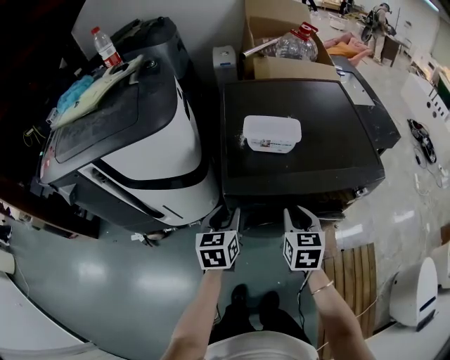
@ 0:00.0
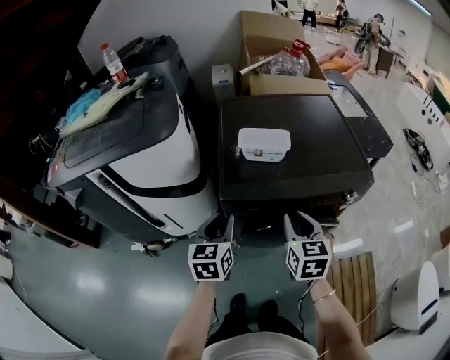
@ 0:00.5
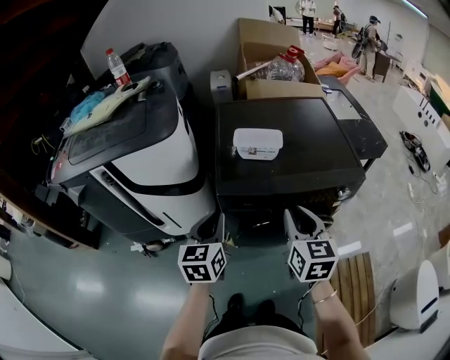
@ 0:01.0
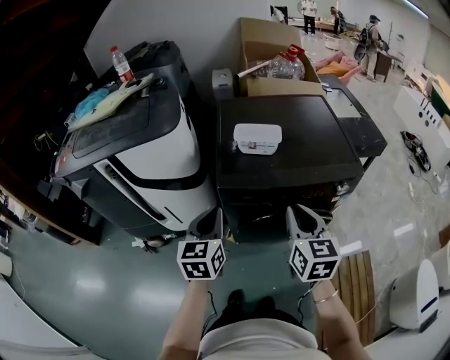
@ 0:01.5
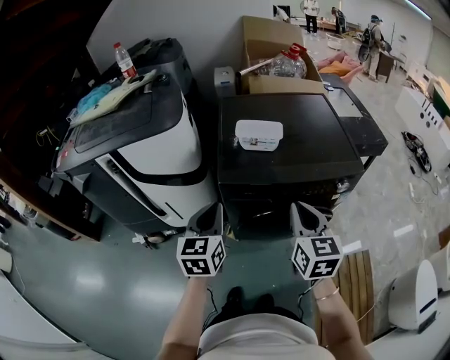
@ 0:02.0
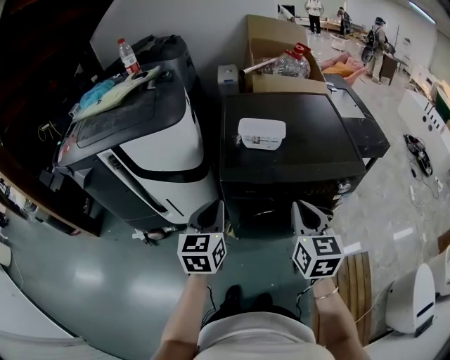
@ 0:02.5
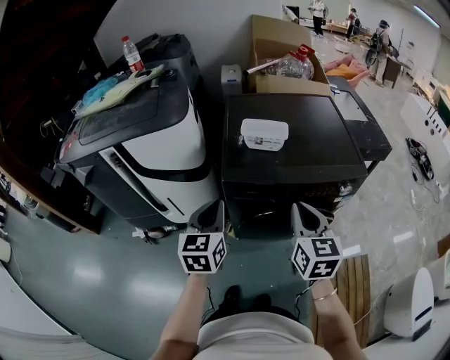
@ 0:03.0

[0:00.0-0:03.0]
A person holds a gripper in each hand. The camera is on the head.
0:00.0 to 0:01.5: The two grippers go approximately 15 cm upward and backward. The left gripper closes up.
0:01.5 to 0:03.0: Neither gripper changes place.

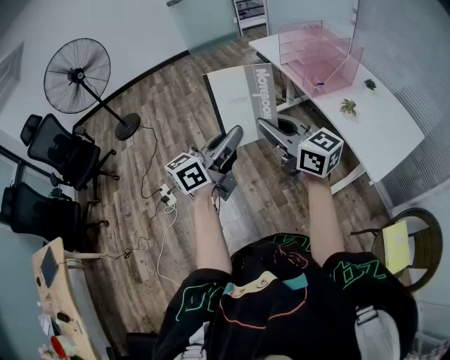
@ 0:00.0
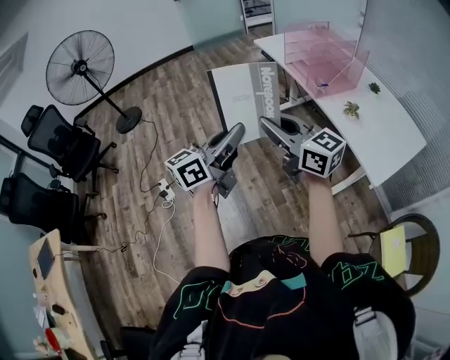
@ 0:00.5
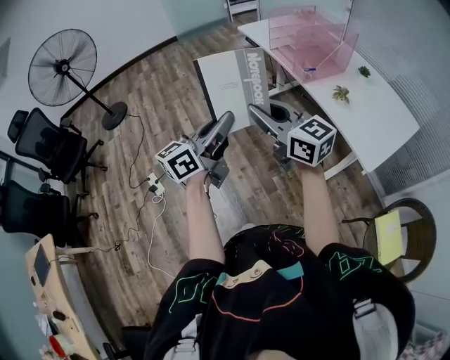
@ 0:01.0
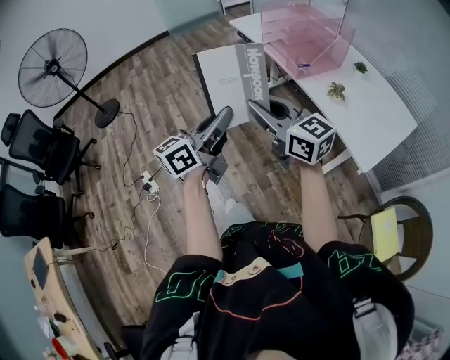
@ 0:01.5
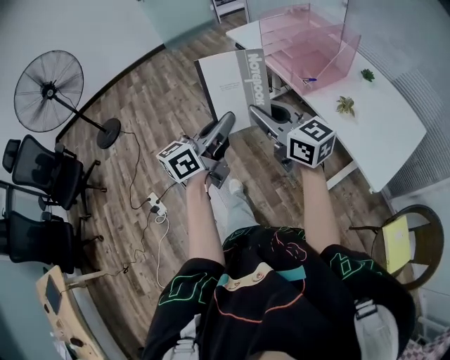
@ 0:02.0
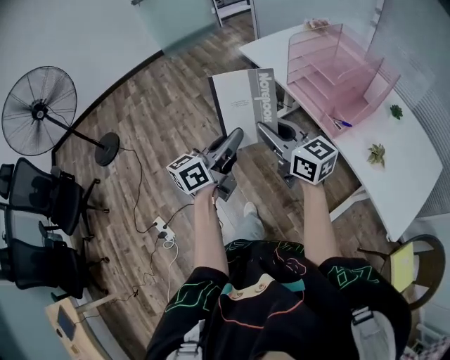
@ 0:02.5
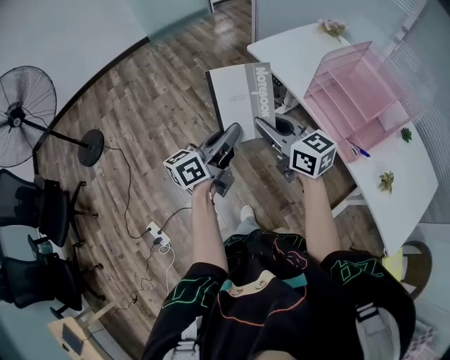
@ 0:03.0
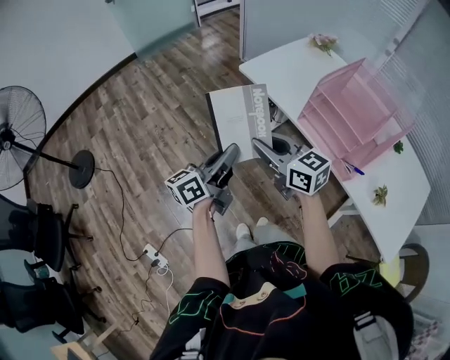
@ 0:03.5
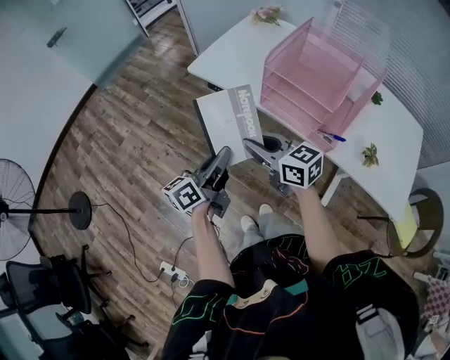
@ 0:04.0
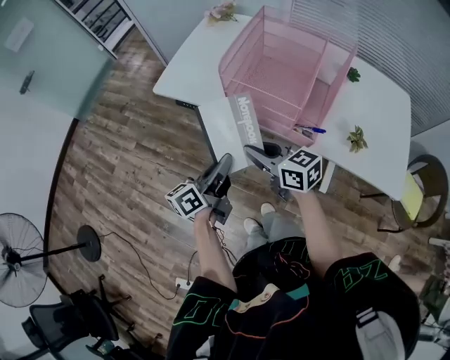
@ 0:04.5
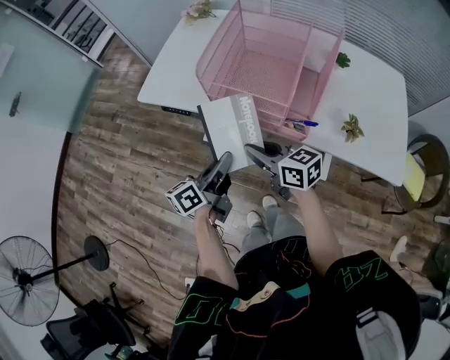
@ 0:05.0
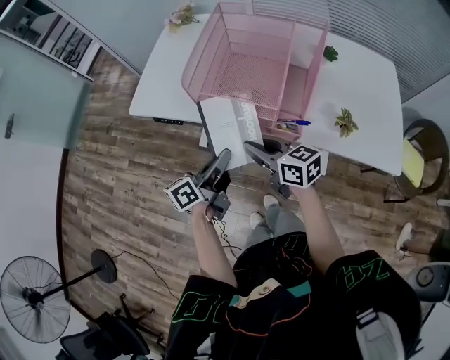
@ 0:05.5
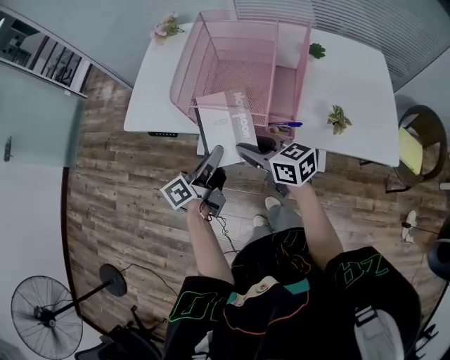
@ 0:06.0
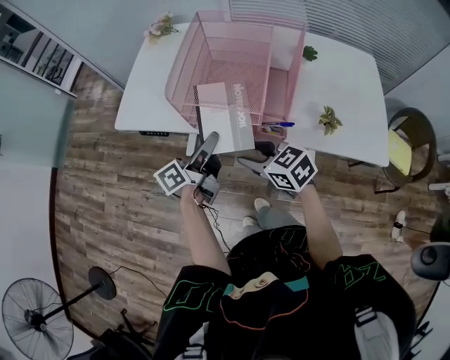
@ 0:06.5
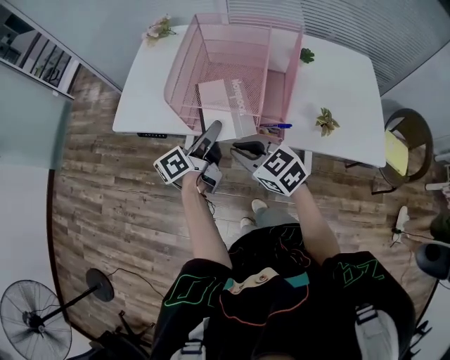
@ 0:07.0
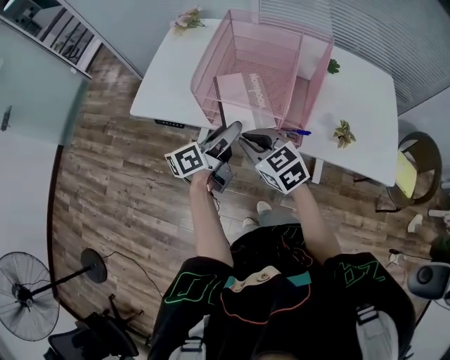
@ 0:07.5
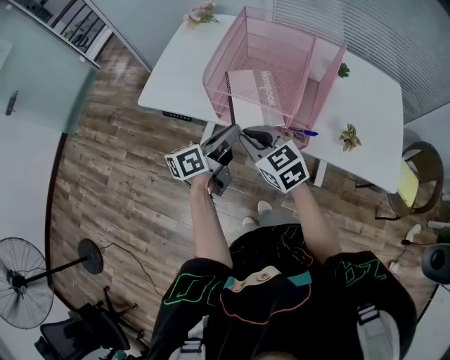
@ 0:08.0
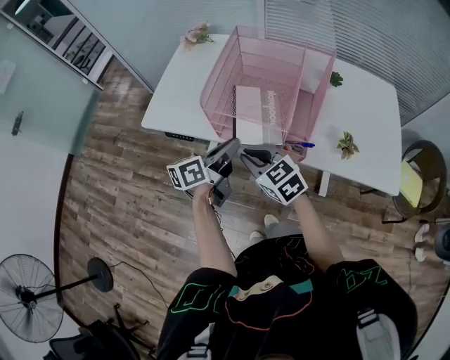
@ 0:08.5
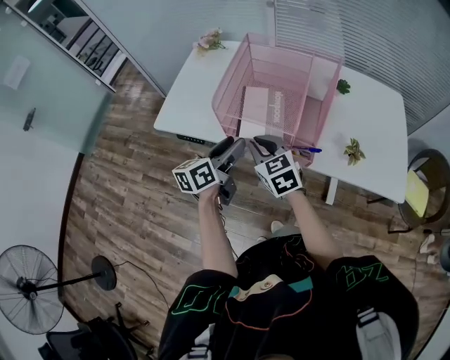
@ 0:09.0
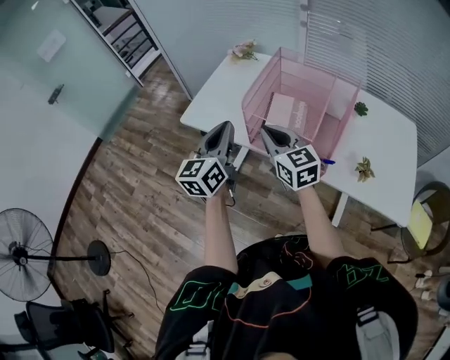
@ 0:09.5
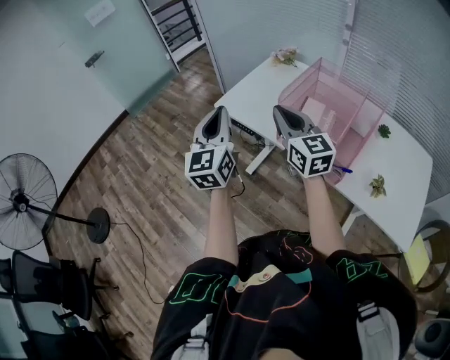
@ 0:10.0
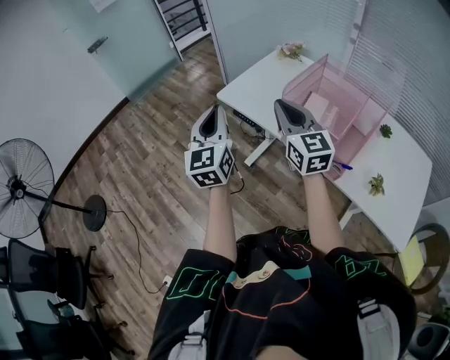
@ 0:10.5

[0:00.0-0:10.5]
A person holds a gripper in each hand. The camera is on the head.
0:00.0 to 0:02.0: The two grippers go about 15 cm forward.
0:02.0 to 0:04.0: The two grippers go roughly 40 cm forward. The right gripper swivels about 30 degrees, while the left gripper swivels about 30 degrees.
0:04.0 to 0:06.5: The left gripper shifts some 20 cm to the right and forward, and changes its angle by about 30 degrees, while the right gripper moves to the right, roughly 15 cm, turns by approximately 30 degrees, and opens.
0:06.5 to 0:08.5: The right gripper goes some 5 cm to the left, and closes. Meanwhile the left gripper opens and closes again.
0:08.5 to 0:10.5: The right gripper shifts roughly 20 cm upward, and tips its fingers upward by about 30 degrees, while the left gripper changes place by approximately 30 cm, rotates approximately 80 degrees, and opens and closes again.

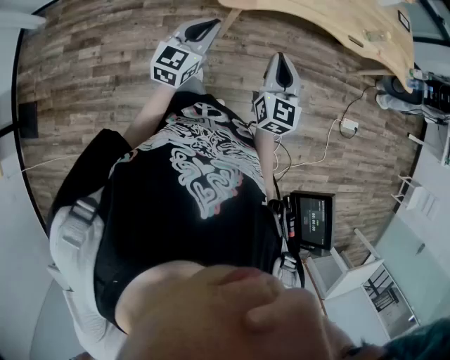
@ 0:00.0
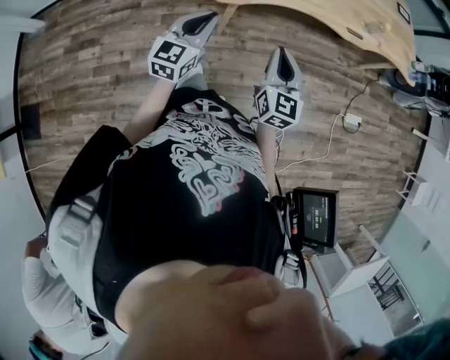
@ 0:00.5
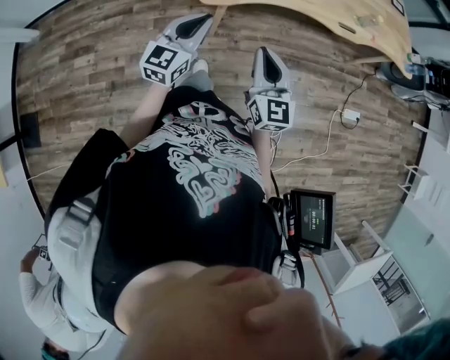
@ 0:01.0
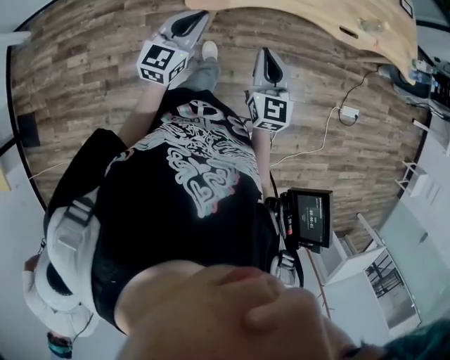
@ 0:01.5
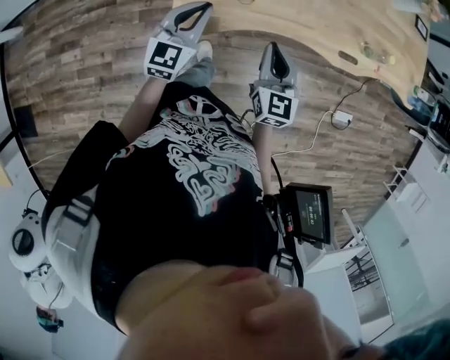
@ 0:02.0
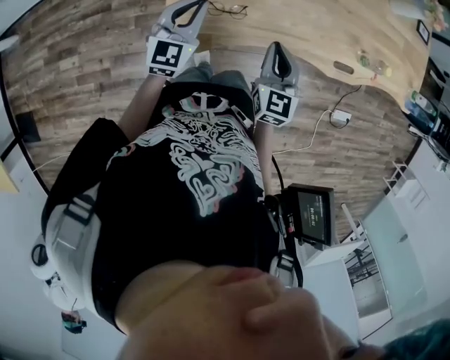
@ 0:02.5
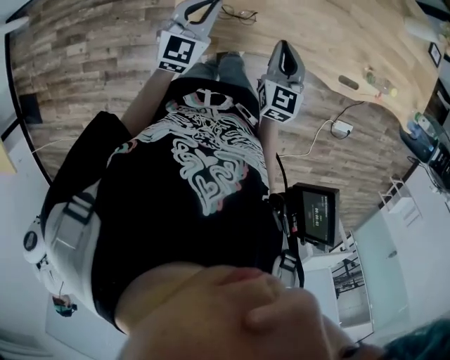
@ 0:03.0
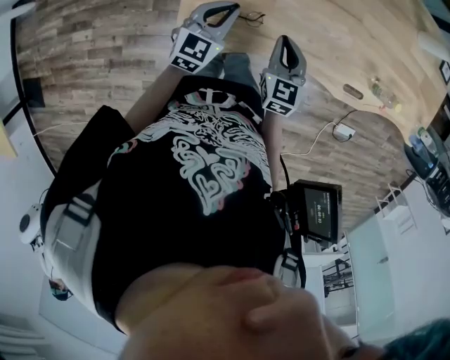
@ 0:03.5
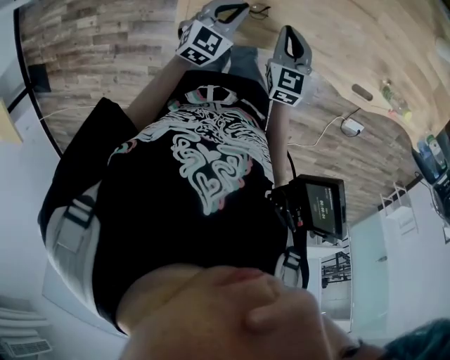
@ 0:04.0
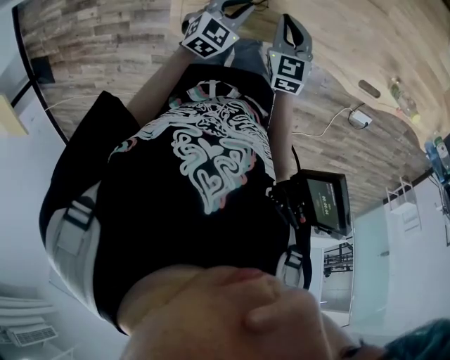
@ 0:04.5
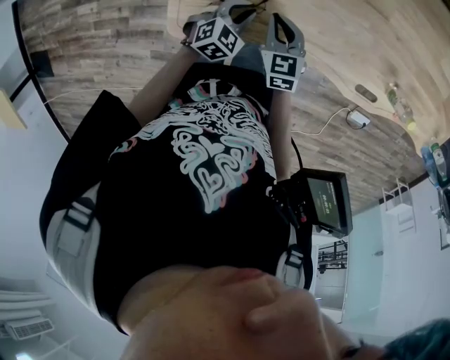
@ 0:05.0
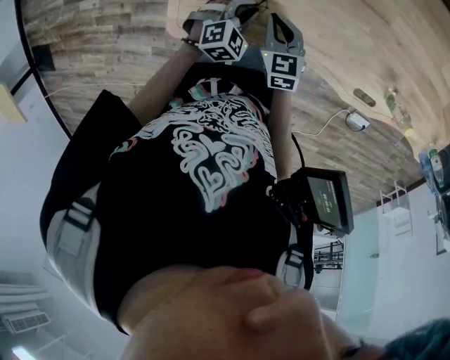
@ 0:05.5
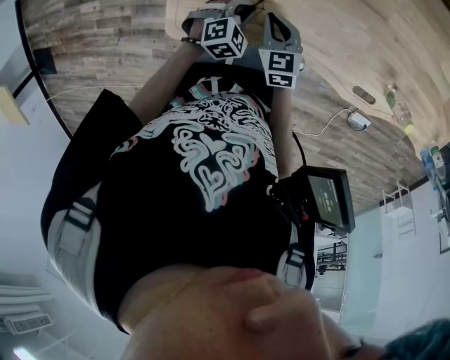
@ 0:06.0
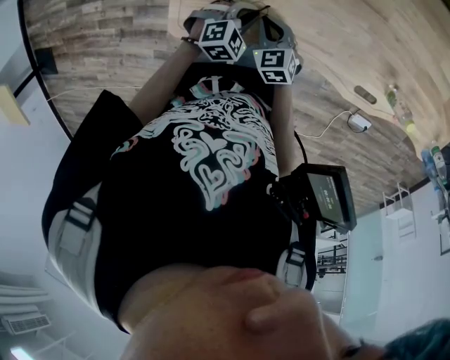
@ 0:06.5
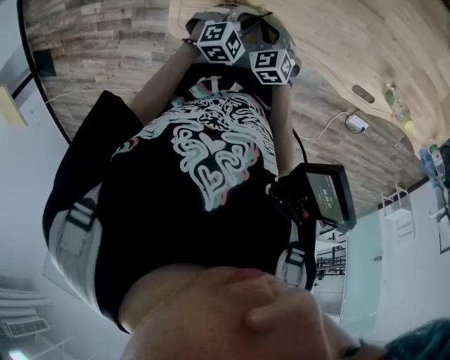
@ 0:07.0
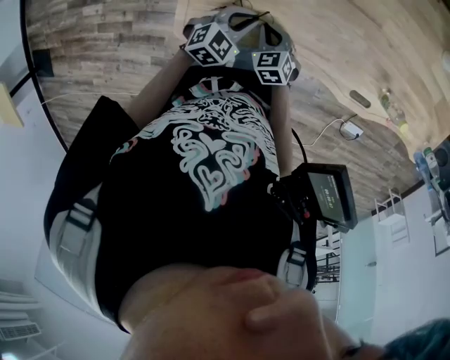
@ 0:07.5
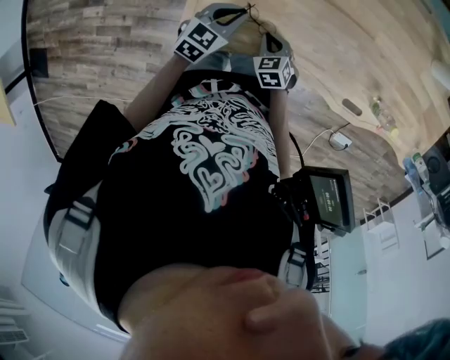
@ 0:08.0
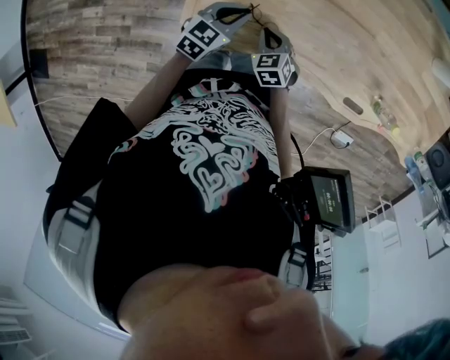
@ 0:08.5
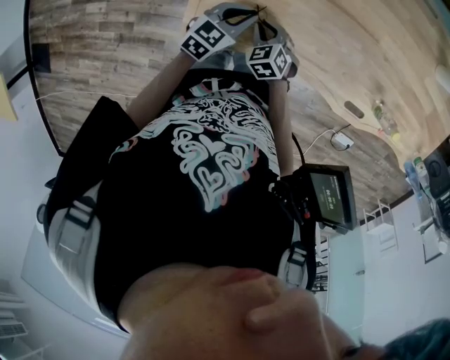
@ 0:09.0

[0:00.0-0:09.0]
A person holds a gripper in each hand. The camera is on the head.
0:00.0 to 0:02.0: Both grippers move forward, about 30 cm.
0:02.0 to 0:04.5: The grippers both shift downward and forward by about 20 cm. The left gripper rotates some 30 degrees. The right gripper changes its angle by about 20 degrees.
0:04.5 to 0:07.0: The left gripper moves some 5 cm, and rotates approximately 20 degrees; the right gripper travels downward by some 5 cm, and changes its angle by about 30 degrees.
0:07.0 to 0:09.0: The right gripper ends up approximately 5 cm from where it was, while the left gripper shifts roughly 10 cm upward, to the left and forward, and swivels some 30 degrees.

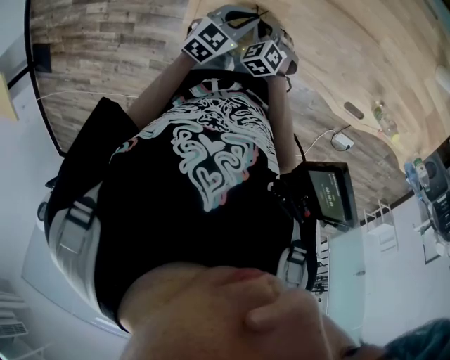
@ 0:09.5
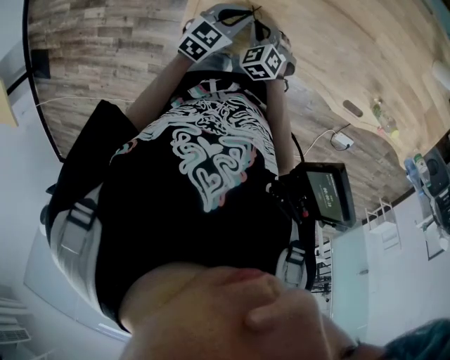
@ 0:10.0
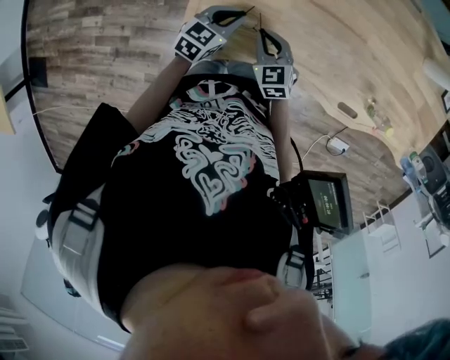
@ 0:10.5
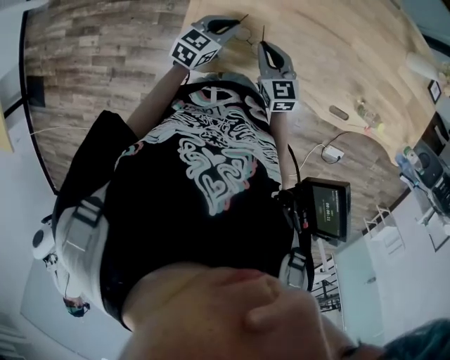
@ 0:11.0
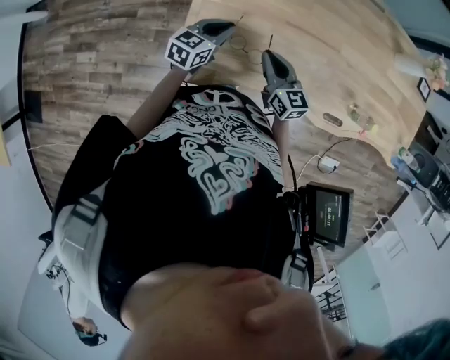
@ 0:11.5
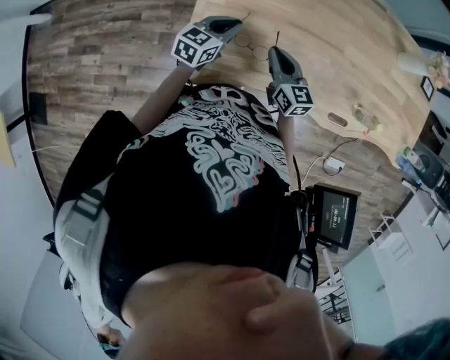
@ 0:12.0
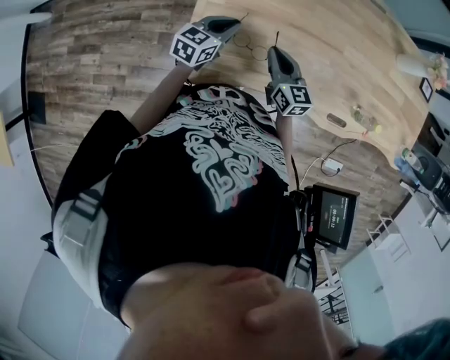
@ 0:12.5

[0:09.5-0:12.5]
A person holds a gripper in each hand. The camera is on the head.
0:09.5 to 0:11.0: The left gripper ends up roughly 5 cm from where it was; the right gripper shifts about 15 cm upward, and points its fingers about 30 degrees further upward.
0:11.0 to 0:12.5: The right gripper moves approximately 5 cm.
